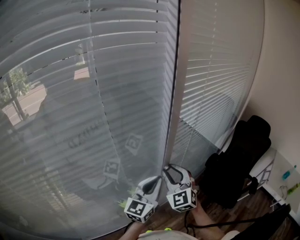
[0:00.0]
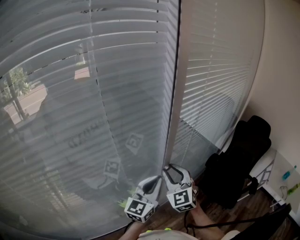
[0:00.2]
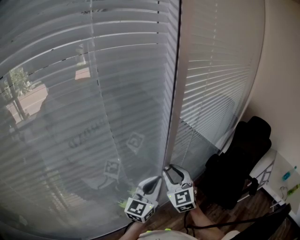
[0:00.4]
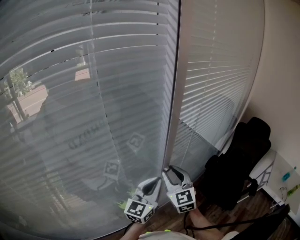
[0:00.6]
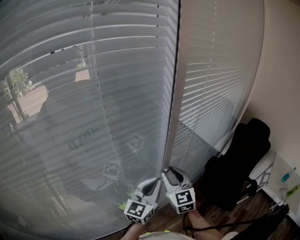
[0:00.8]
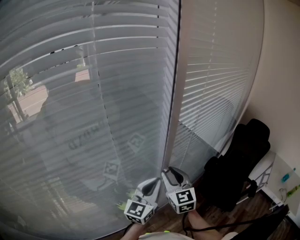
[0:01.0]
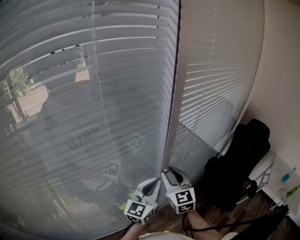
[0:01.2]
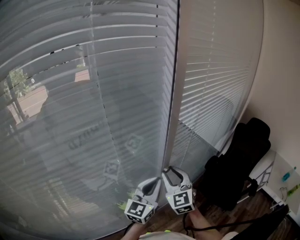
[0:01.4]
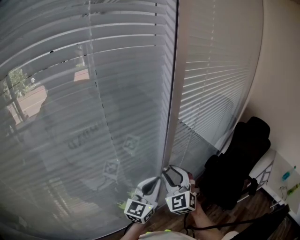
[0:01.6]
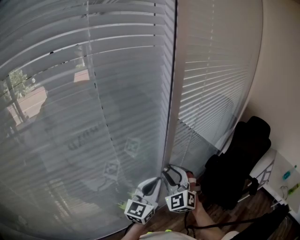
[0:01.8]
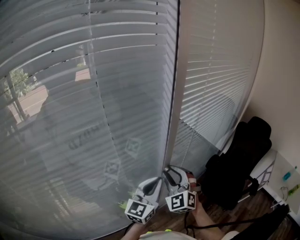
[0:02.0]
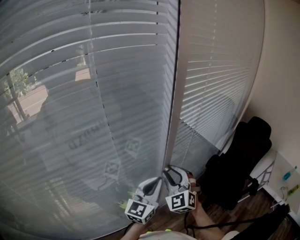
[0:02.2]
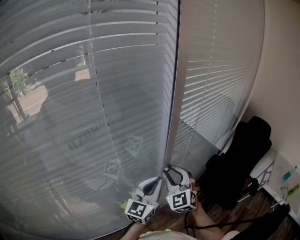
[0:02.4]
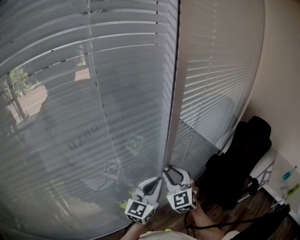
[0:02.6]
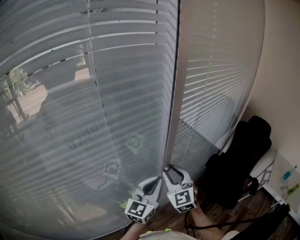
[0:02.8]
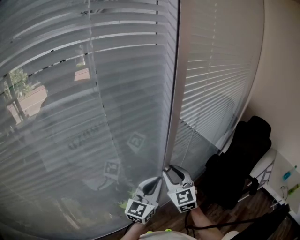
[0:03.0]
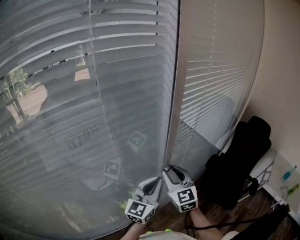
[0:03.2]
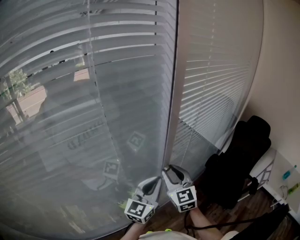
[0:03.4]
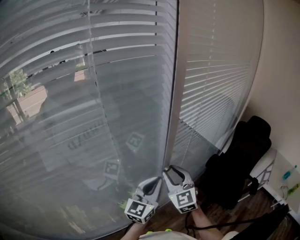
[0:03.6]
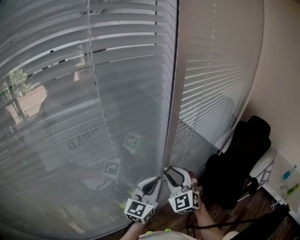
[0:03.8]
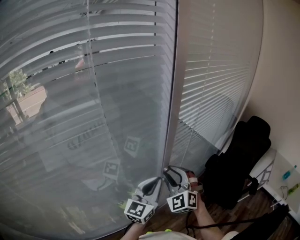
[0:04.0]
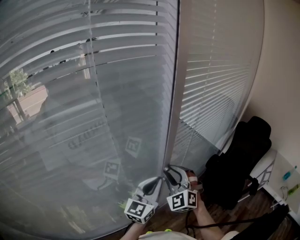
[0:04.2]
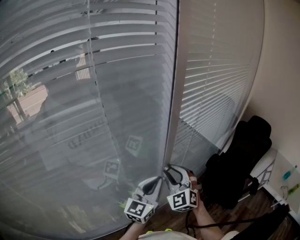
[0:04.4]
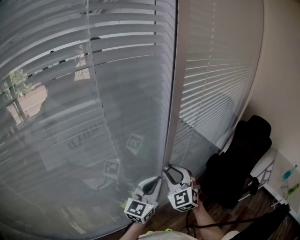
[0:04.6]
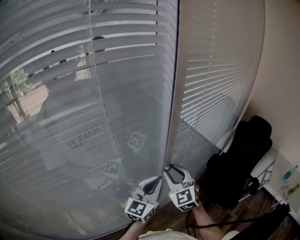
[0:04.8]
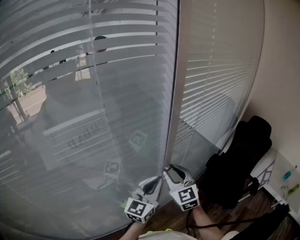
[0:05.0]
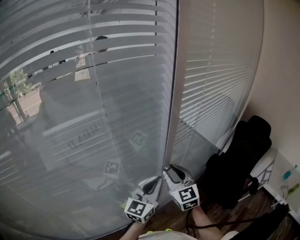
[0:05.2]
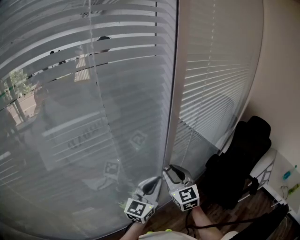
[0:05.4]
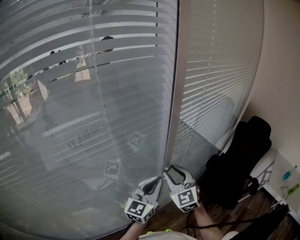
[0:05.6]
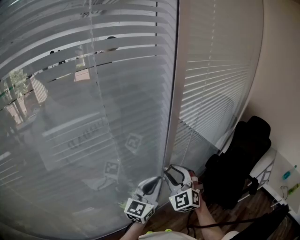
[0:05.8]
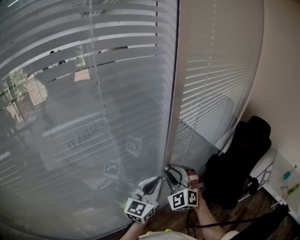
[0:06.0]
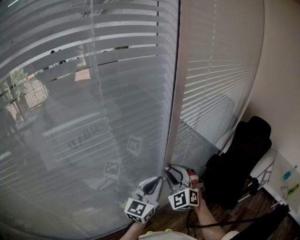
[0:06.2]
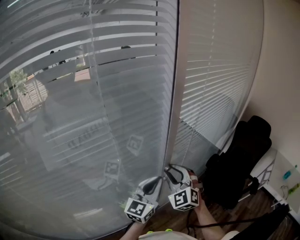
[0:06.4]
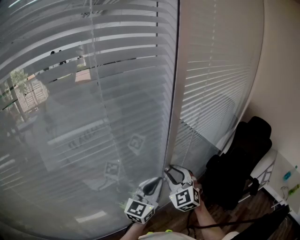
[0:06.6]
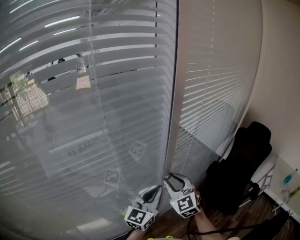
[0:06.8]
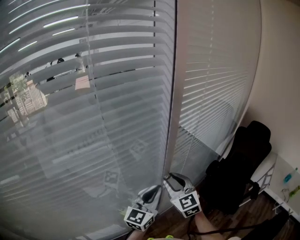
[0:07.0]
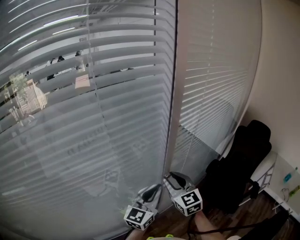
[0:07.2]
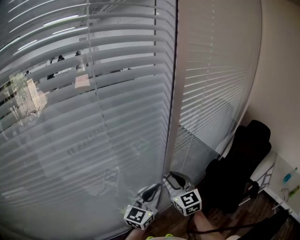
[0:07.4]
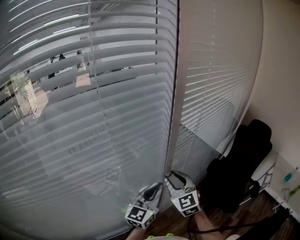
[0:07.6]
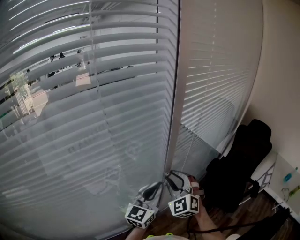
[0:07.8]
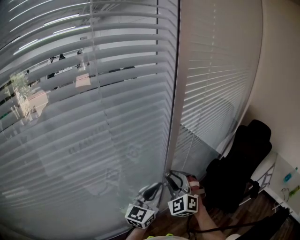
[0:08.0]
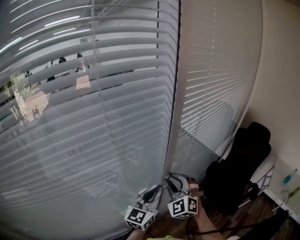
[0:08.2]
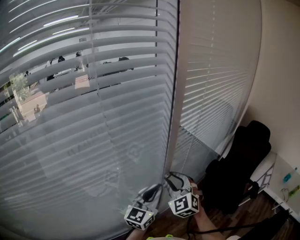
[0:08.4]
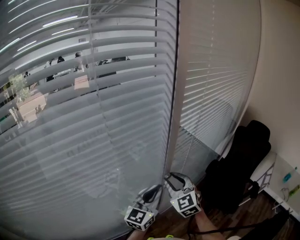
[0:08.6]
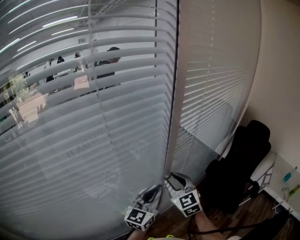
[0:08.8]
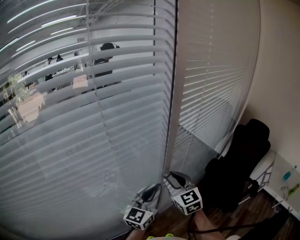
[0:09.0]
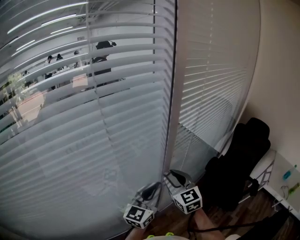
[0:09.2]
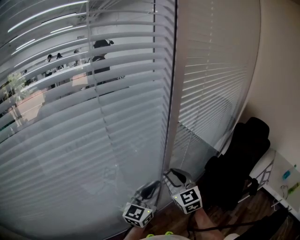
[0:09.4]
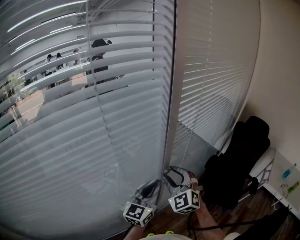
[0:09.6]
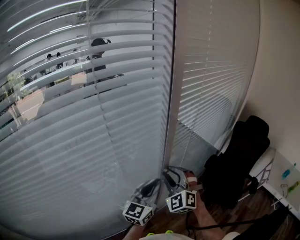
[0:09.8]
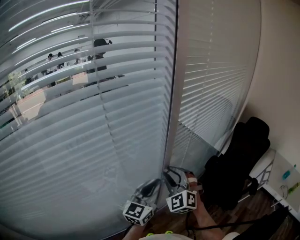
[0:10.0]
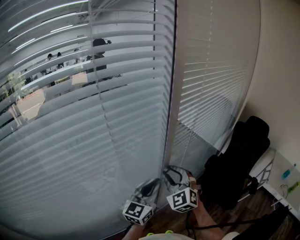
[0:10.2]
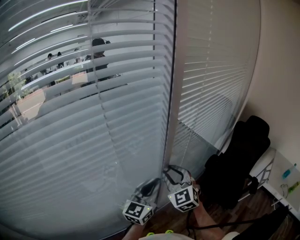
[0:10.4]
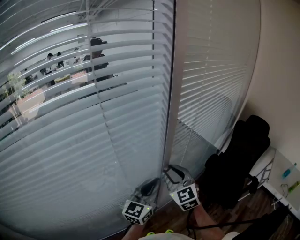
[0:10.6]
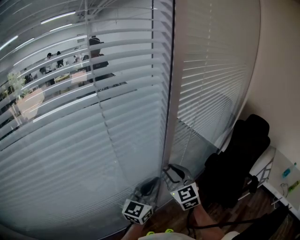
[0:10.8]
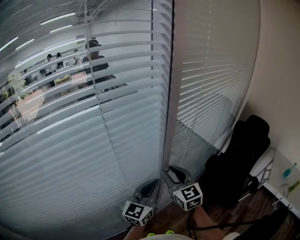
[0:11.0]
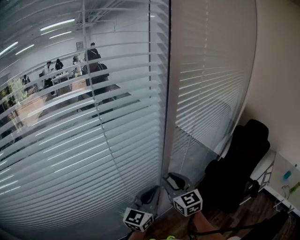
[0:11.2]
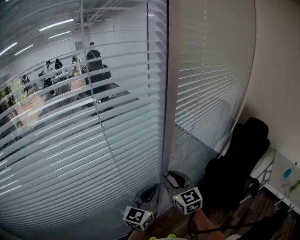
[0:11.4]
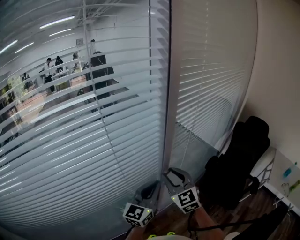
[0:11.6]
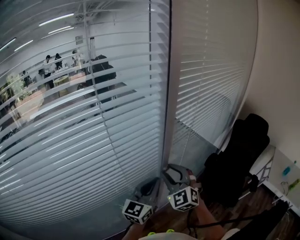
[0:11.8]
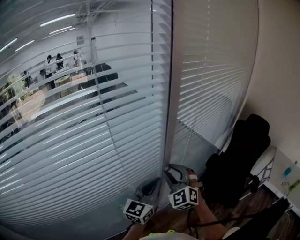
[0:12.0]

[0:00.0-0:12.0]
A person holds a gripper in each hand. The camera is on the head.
0:01.6 to 0:03.0: The right gripper swivels about 20 degrees.
0:03.0 to 0:04.4: The right gripper turns by about 30 degrees.
0:06.0 to 0:07.6: The right gripper turns by about 30 degrees.
0:09.0 to 0:10.4: The right gripper changes its angle by approximately 20 degrees.

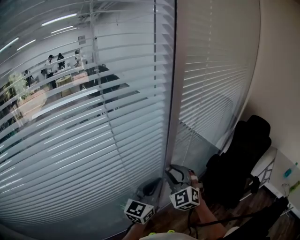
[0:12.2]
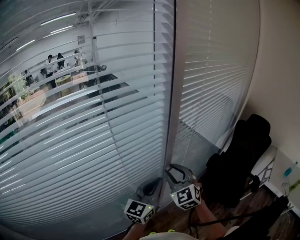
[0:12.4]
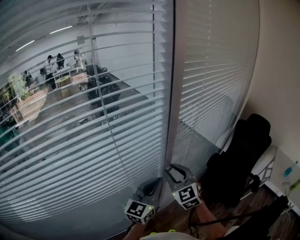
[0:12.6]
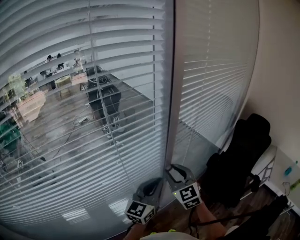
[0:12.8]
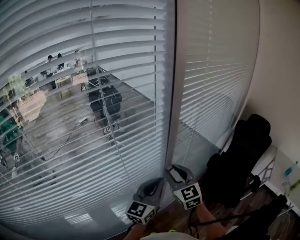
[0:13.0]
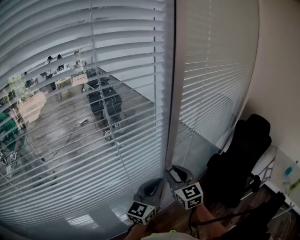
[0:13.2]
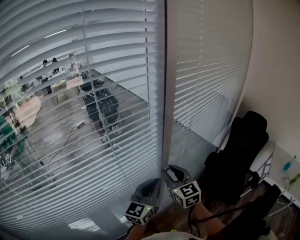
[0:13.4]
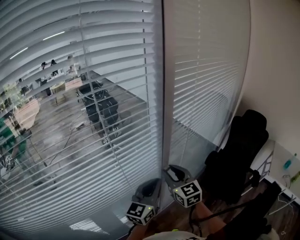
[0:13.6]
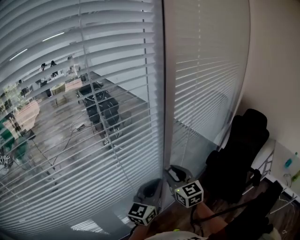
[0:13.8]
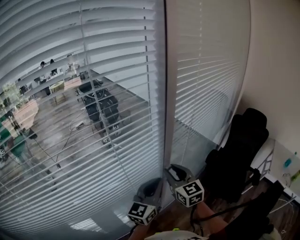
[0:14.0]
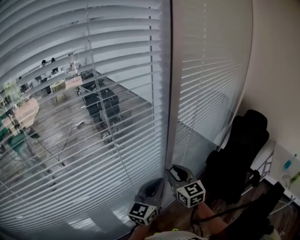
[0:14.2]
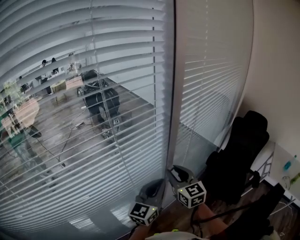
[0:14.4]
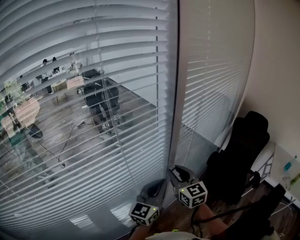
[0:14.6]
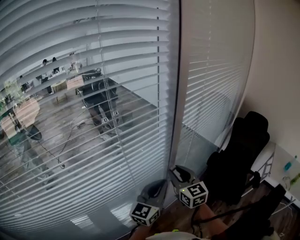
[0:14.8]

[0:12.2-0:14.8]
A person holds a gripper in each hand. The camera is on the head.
0:12.2 to 0:13.4: The right gripper turns by roughly 40 degrees.
0:13.4 to 0:14.8: There are only small adjustments of the grippers.

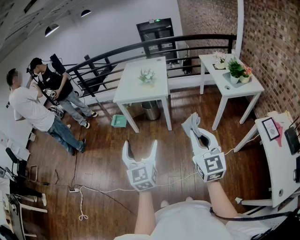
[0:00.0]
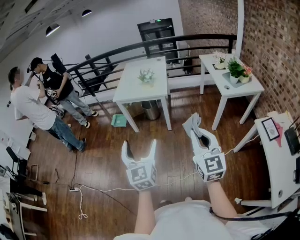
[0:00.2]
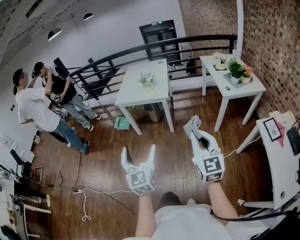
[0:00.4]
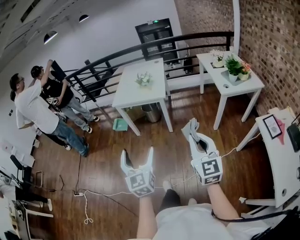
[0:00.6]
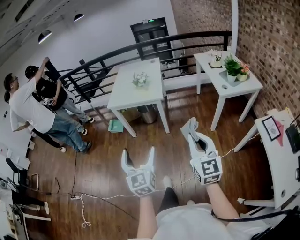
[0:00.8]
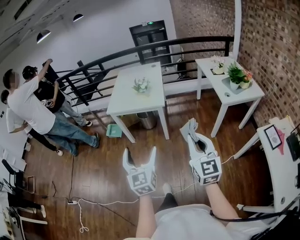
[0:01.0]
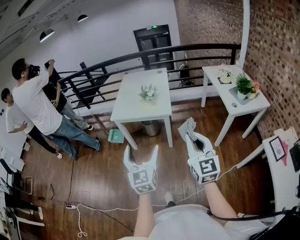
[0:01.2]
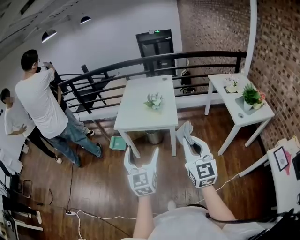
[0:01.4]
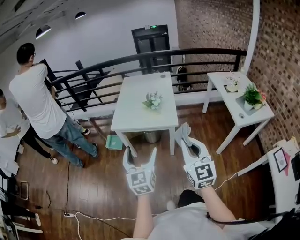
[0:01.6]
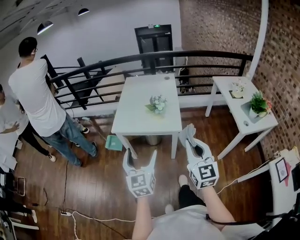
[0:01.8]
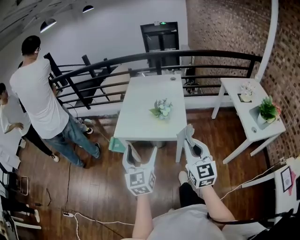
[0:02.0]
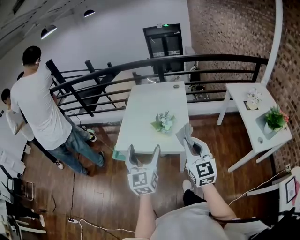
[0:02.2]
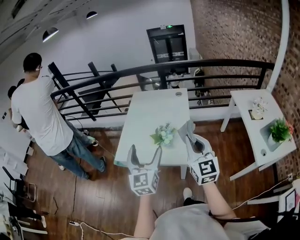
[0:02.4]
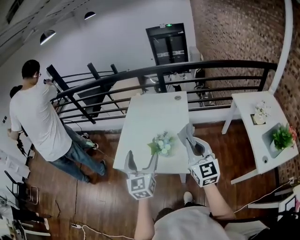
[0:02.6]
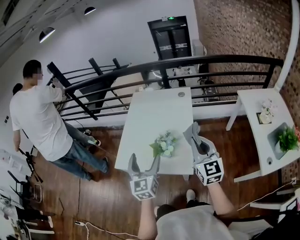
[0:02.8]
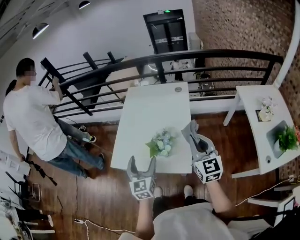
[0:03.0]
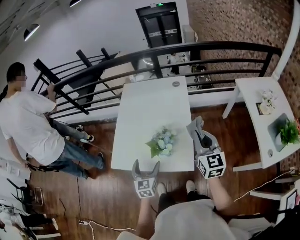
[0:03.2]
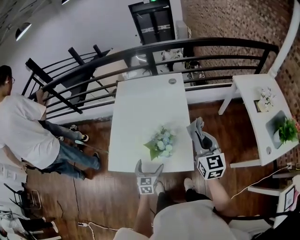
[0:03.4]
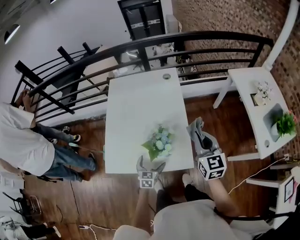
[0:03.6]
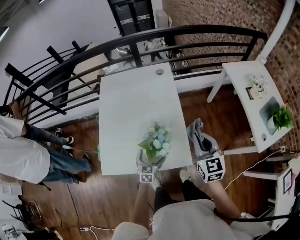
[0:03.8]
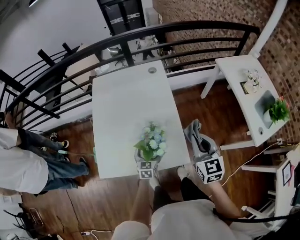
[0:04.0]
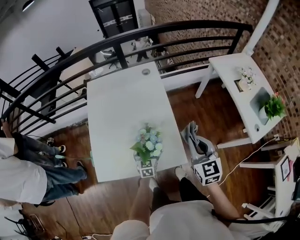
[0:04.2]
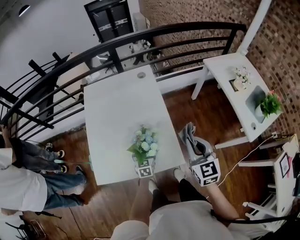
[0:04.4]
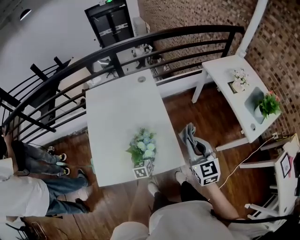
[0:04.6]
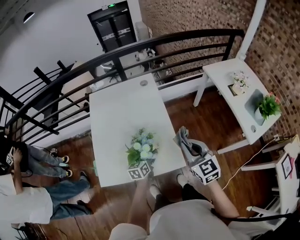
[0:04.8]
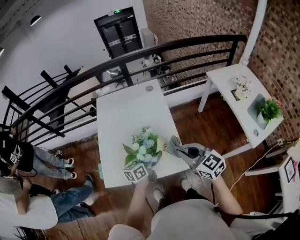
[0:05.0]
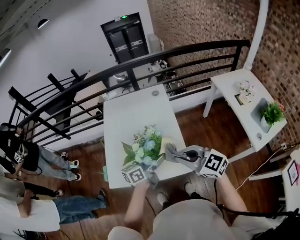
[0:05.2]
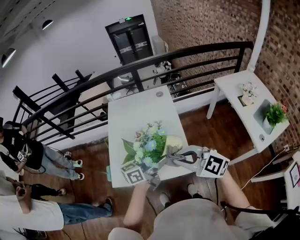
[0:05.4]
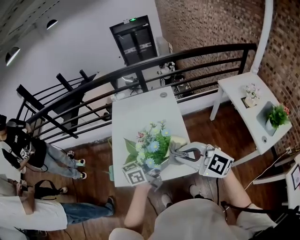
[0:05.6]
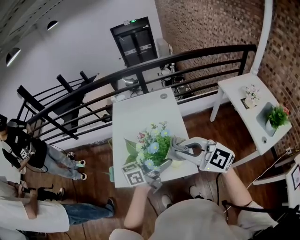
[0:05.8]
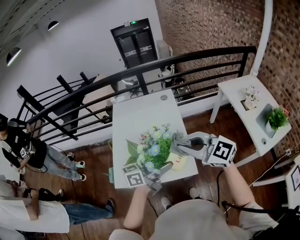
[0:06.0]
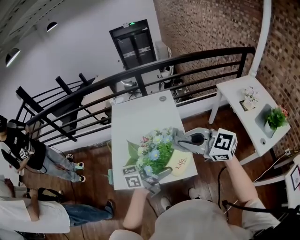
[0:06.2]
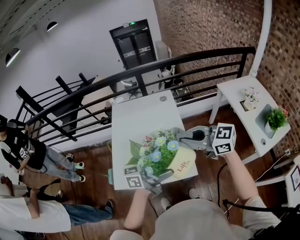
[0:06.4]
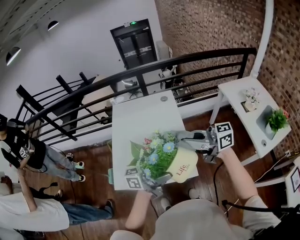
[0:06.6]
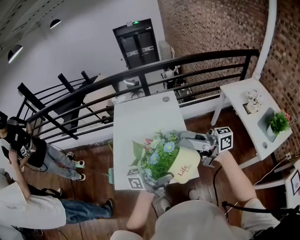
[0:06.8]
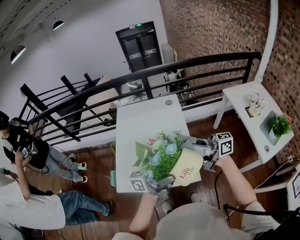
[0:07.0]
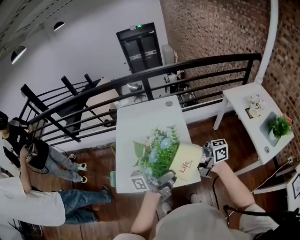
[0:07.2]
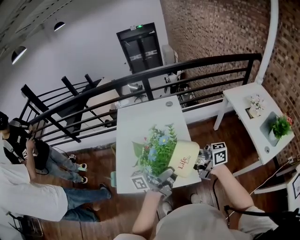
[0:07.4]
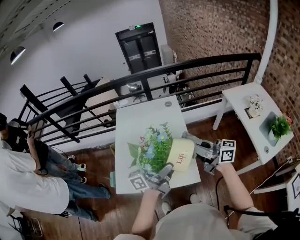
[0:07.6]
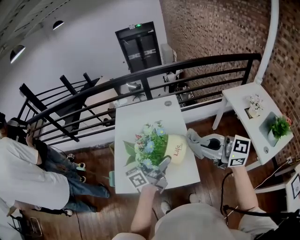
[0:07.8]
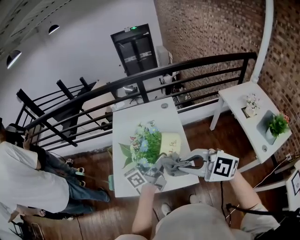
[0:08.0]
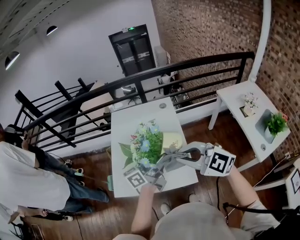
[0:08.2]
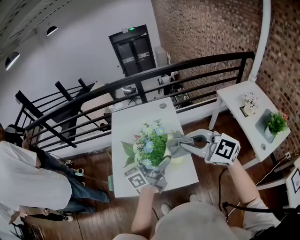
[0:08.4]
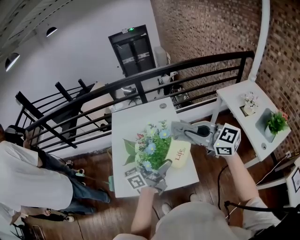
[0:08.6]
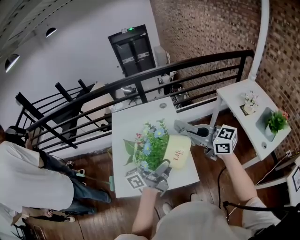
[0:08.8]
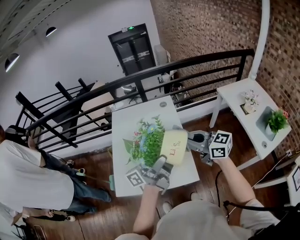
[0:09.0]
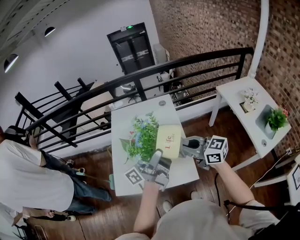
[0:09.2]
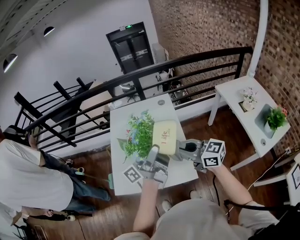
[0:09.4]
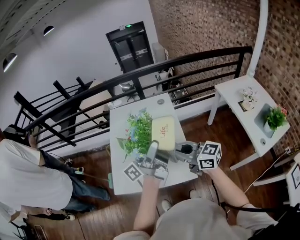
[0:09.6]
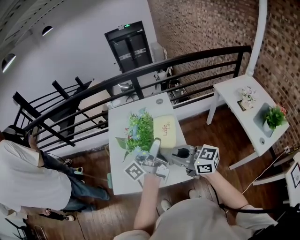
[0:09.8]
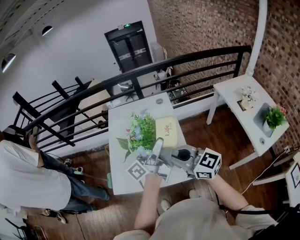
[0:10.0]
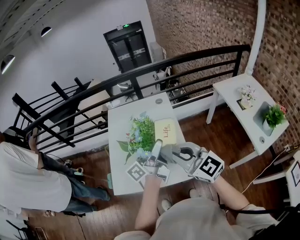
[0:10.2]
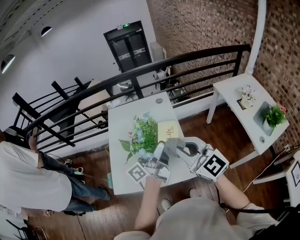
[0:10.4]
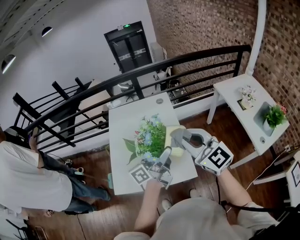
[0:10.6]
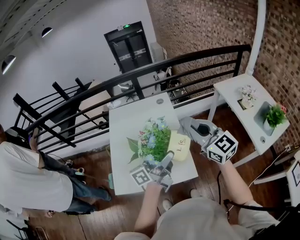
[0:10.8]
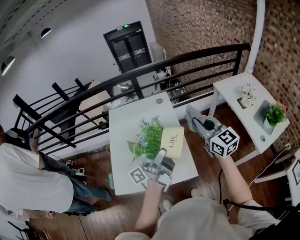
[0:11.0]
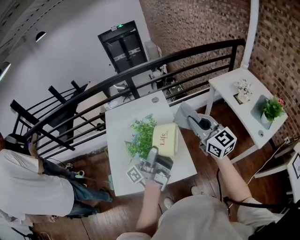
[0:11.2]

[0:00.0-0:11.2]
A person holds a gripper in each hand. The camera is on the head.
0:00.0 to 0:01.6: The two grippers go some 35 cm forward.
0:01.6 to 0:03.2: The right gripper goes some 50 cm forward; the left gripper shifts approximately 40 cm forward and downward, and turns by some 20 degrees.
0:03.2 to 0:04.8: The left gripper heads forward, downward and to the right, covering about 15 cm, and swivels about 40 degrees. The right gripper moves some 5 cm.
0:04.8 to 0:06.4: The right gripper is displaced upward by roughly 15 cm, and rotates about 50 degrees. Meanwhile the left gripper goes approximately 30 cm upward, and angles its fingers upward, by some 40 degrees.
0:06.4 to 0:08.0: The left gripper changes place by roughly 10 cm, and changes its angle by roughly 30 degrees; the right gripper reaches about 5 cm downward, then returns, and changes its angle by roughly 30 degrees.
0:08.0 to 0:09.6: The right gripper travels forward by about 5 cm, and rotates approximately 40 degrees. The left gripper moves upward, some 5 cm, and changes its angle by approximately 20 degrees.
0:09.6 to 0:11.2: The right gripper travels to the right, upward and forward by approximately 15 cm, and turns by approximately 40 degrees.
